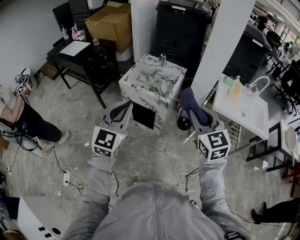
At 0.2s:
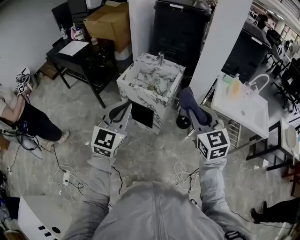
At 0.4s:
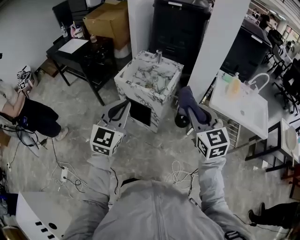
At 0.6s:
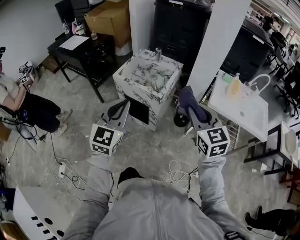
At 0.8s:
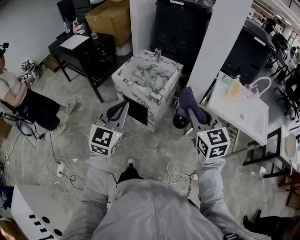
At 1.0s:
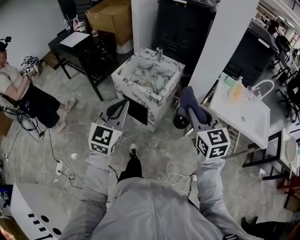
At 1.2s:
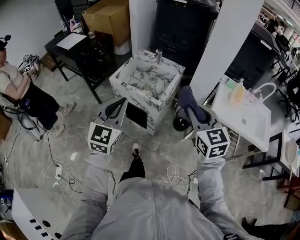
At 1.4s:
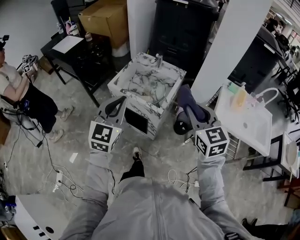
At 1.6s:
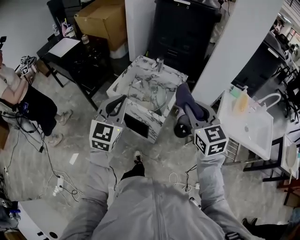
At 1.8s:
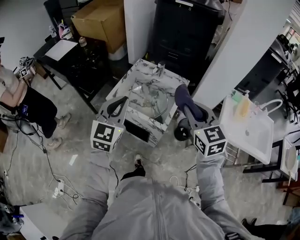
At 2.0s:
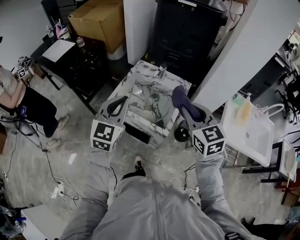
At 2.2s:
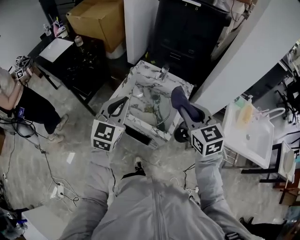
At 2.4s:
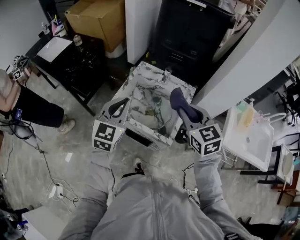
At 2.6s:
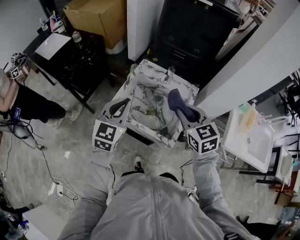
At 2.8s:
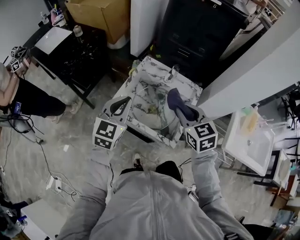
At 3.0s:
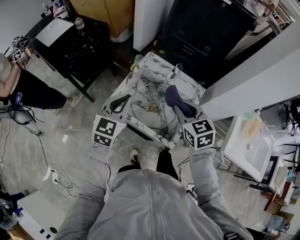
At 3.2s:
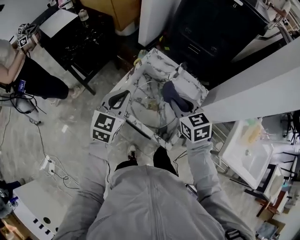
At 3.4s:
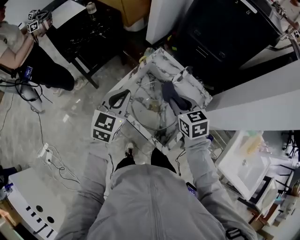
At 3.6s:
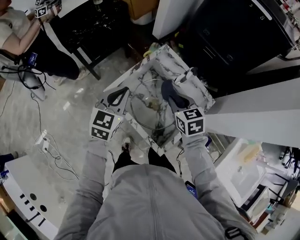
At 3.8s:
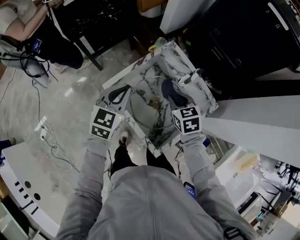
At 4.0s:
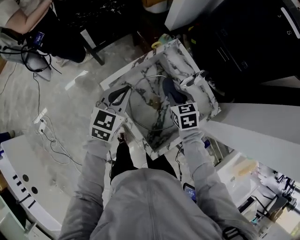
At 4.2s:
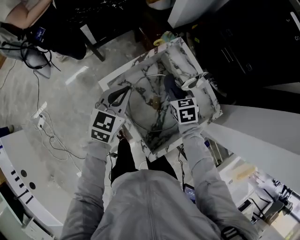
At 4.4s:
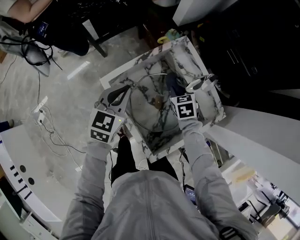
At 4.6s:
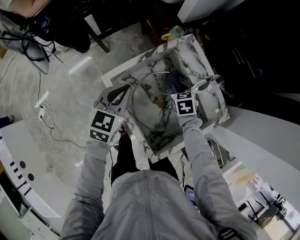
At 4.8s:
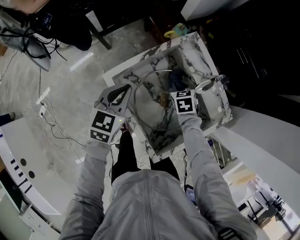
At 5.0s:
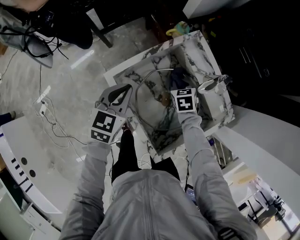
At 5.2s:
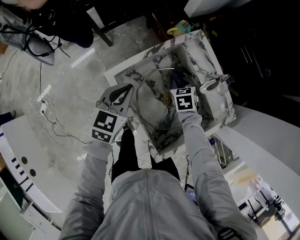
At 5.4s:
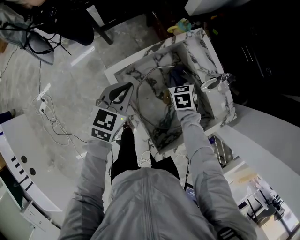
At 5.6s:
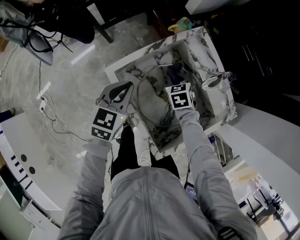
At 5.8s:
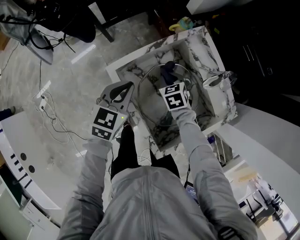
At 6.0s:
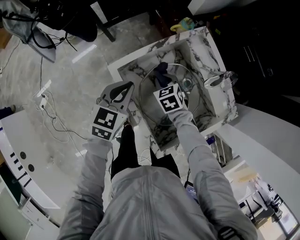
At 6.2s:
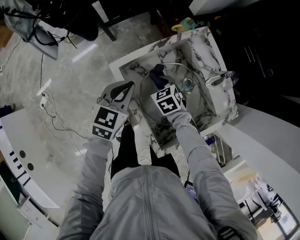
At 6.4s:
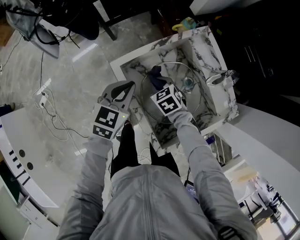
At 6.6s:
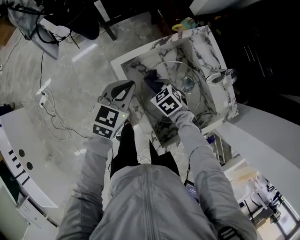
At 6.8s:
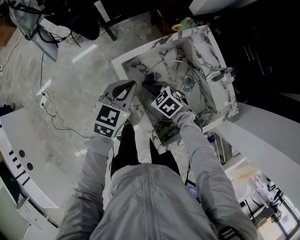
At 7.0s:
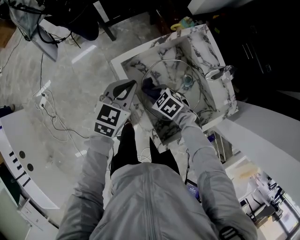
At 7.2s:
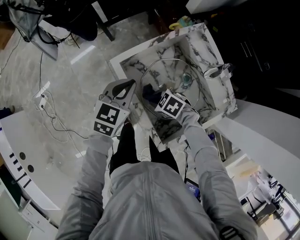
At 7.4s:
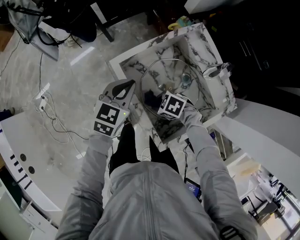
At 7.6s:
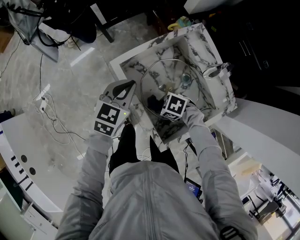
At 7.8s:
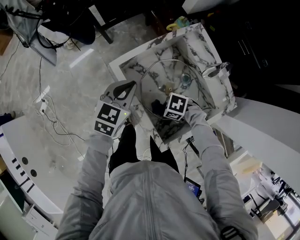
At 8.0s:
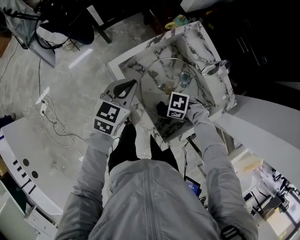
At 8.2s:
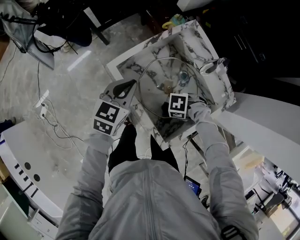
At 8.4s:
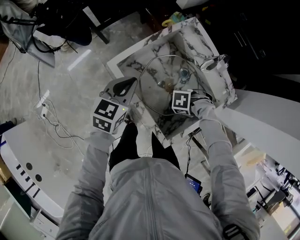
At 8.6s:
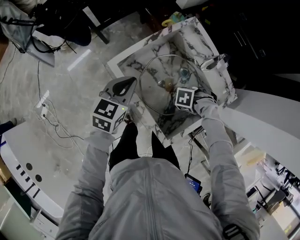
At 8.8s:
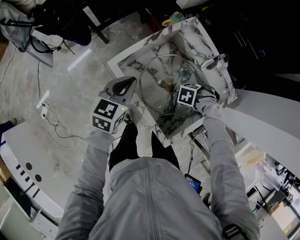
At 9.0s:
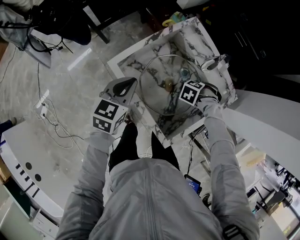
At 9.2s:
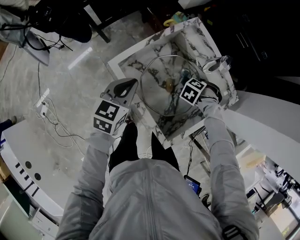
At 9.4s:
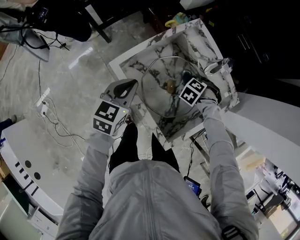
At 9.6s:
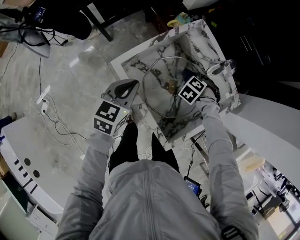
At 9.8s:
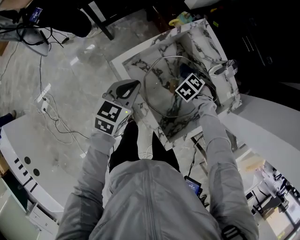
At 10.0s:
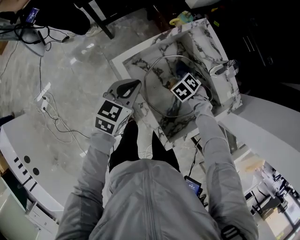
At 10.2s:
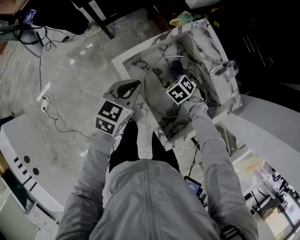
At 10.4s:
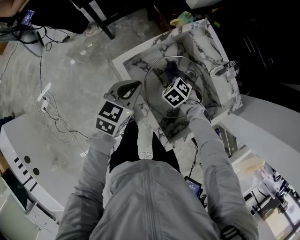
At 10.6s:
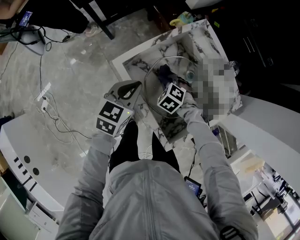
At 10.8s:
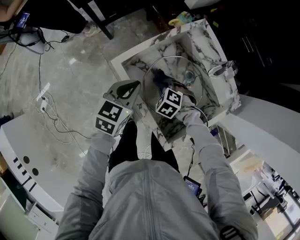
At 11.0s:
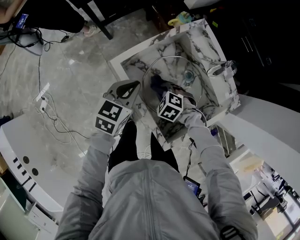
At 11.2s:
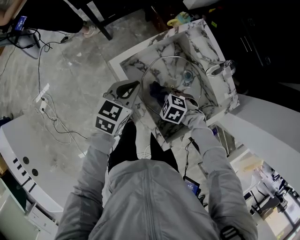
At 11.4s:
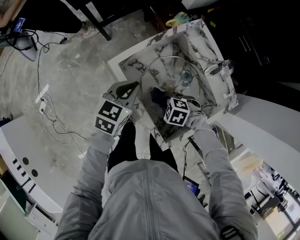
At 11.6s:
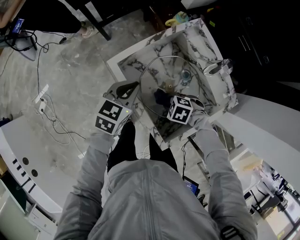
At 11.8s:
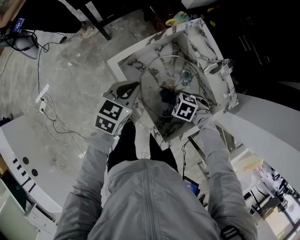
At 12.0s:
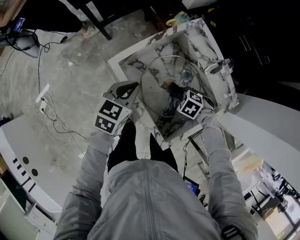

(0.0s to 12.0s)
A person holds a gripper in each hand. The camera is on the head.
0.0s - 1.6s: Both grippers move forward, about 20 cm.
1.6s - 3.0s: The left gripper moves forward and downward, some 25 cm. Meanwhile the right gripper shifts approximately 30 cm forward, downward and to the left.
3.0s - 4.4s: The left gripper travels downward and forward by some 15 cm, and swivels approximately 30 degrees. The right gripper travels downward and forward by approximately 30 cm, and changes its angle by roughly 30 degrees.
4.4s - 6.0s: The right gripper goes some 15 cm to the left. Meanwhile the left gripper ends up roughly 5 cm from where it was.
6.0s - 7.6s: The right gripper shifts by roughly 20 cm, and swivels roughly 50 degrees.
7.6s - 9.0s: The right gripper ends up approximately 20 cm from where it was, and changes its angle by some 40 degrees.
9.0s - 10.4s: The right gripper moves some 15 cm, and changes its angle by approximately 30 degrees.
10.4s - 12.0s: The right gripper ends up roughly 10 cm from where it was, and rotates some 20 degrees.

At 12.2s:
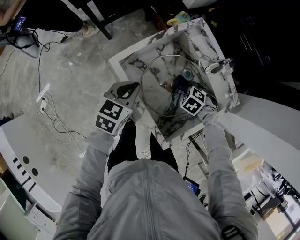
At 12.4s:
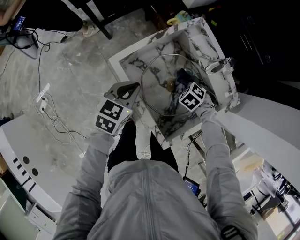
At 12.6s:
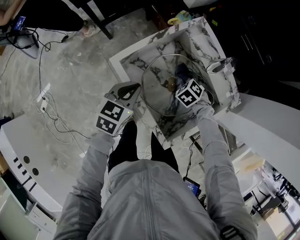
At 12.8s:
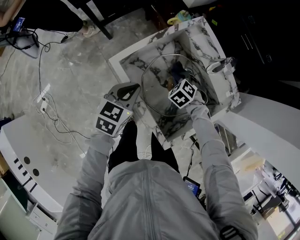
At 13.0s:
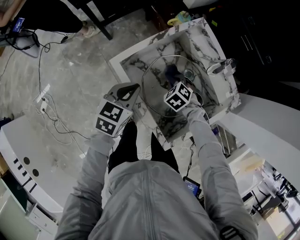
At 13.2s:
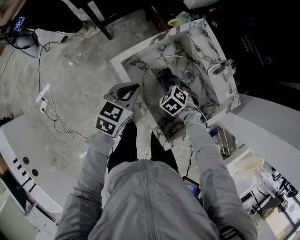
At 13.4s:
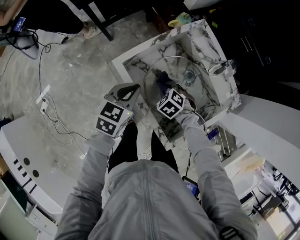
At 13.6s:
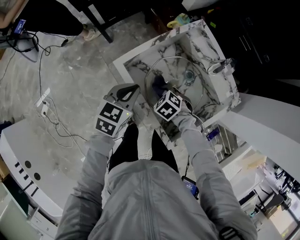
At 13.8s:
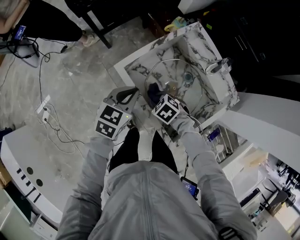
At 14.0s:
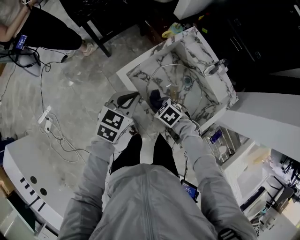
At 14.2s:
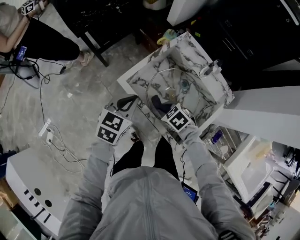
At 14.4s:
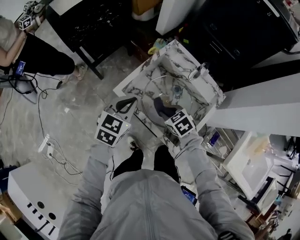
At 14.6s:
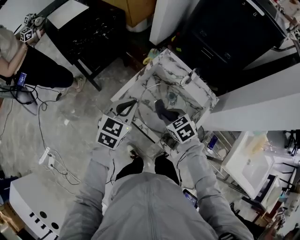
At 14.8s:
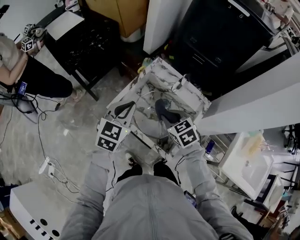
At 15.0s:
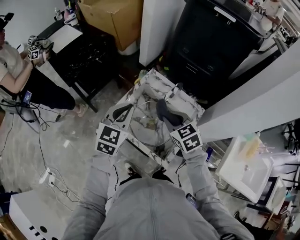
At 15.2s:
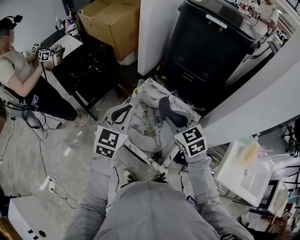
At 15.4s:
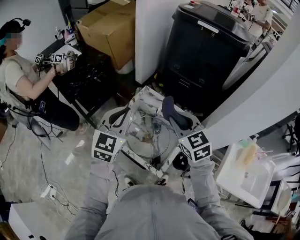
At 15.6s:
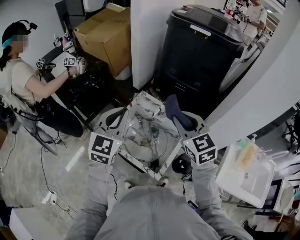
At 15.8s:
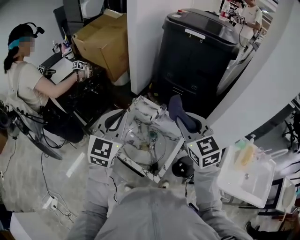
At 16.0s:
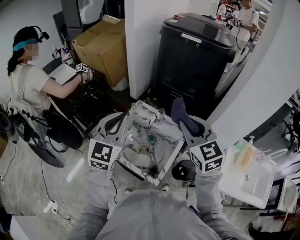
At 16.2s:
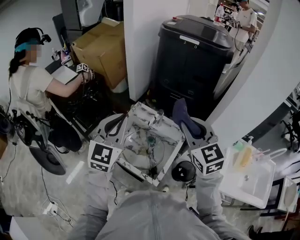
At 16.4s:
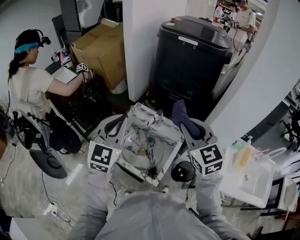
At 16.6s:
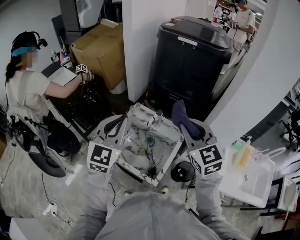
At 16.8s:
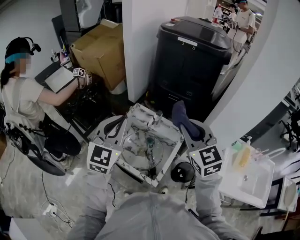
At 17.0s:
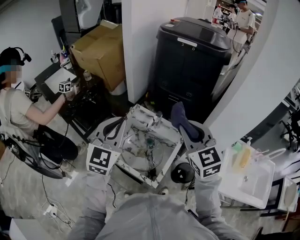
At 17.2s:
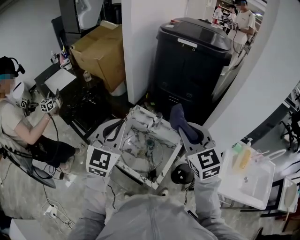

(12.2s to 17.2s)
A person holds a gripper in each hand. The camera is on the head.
12.2s - 13.8s: The right gripper moves roughly 20 cm, and rotates about 20 degrees.
13.8s - 15.6s: The grippers both shift upward by roughly 35 cm. The right gripper angles its fingers upward, by about 50 degrees. The left gripper angles its fingers upward, by roughly 30 degrees.
15.6s - 17.2s: The right gripper moves upward, some 5 cm. Meanwhile the left gripper changes place by roughly 5 cm.

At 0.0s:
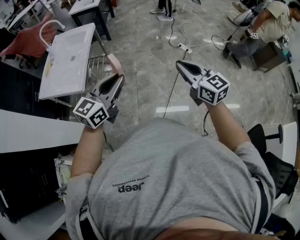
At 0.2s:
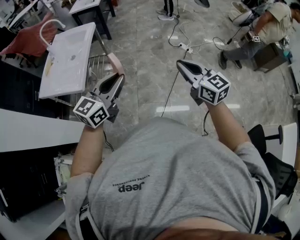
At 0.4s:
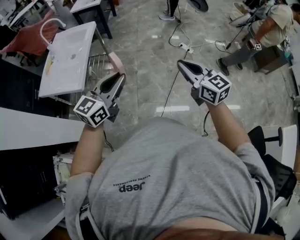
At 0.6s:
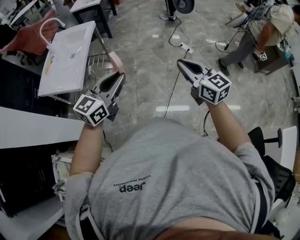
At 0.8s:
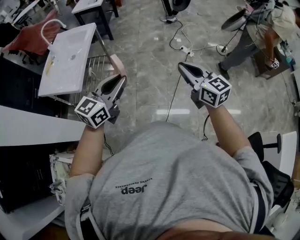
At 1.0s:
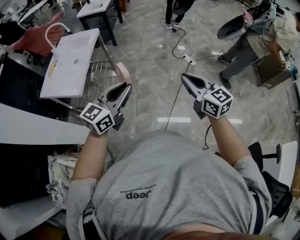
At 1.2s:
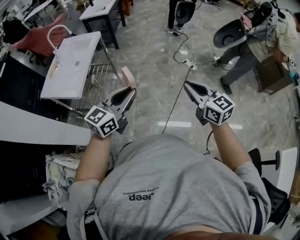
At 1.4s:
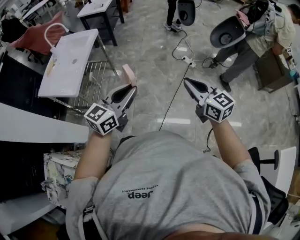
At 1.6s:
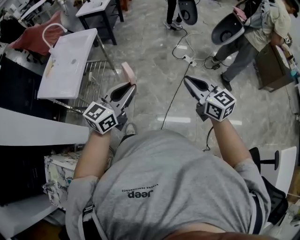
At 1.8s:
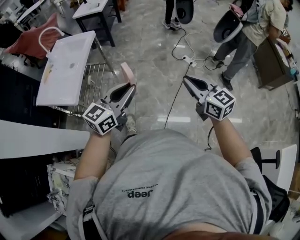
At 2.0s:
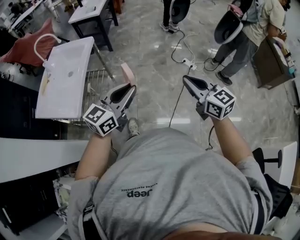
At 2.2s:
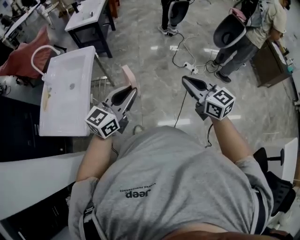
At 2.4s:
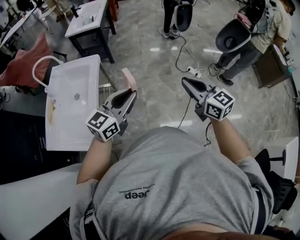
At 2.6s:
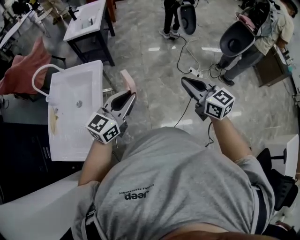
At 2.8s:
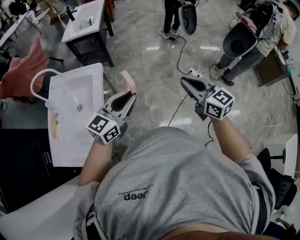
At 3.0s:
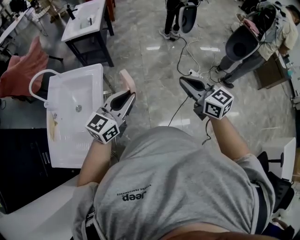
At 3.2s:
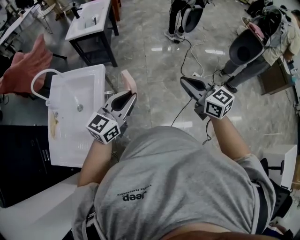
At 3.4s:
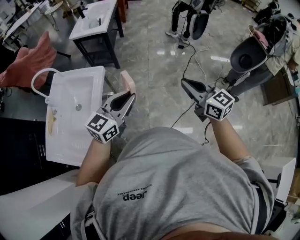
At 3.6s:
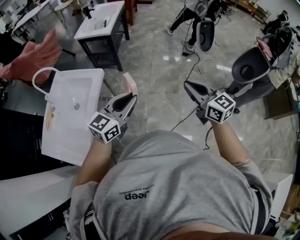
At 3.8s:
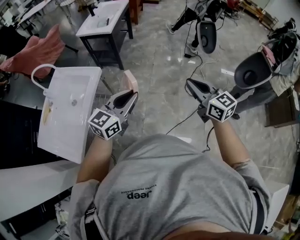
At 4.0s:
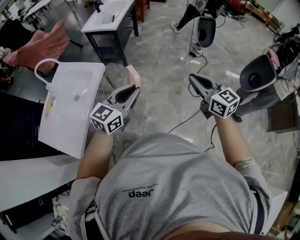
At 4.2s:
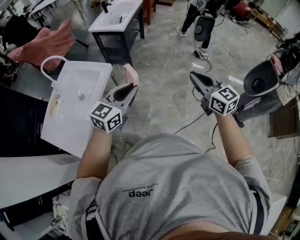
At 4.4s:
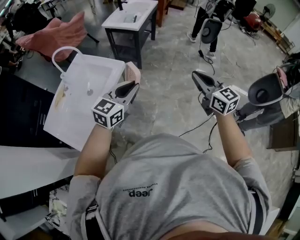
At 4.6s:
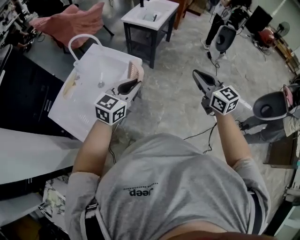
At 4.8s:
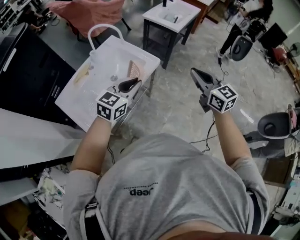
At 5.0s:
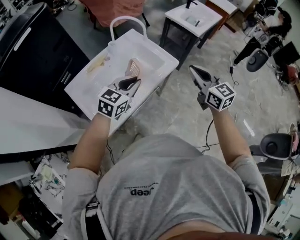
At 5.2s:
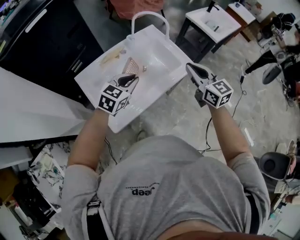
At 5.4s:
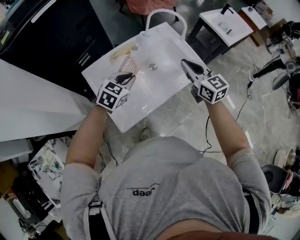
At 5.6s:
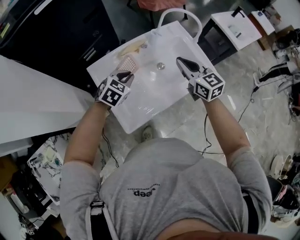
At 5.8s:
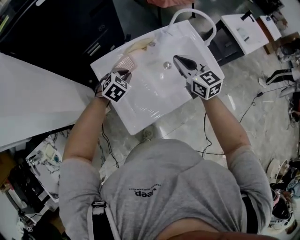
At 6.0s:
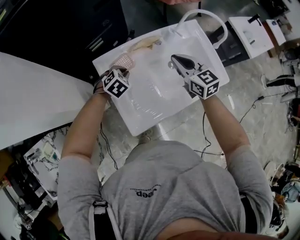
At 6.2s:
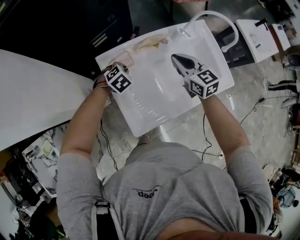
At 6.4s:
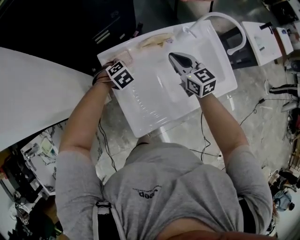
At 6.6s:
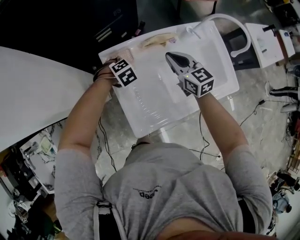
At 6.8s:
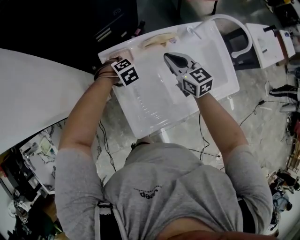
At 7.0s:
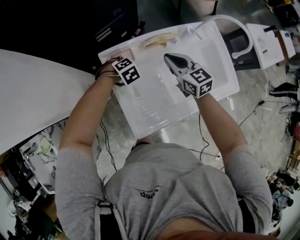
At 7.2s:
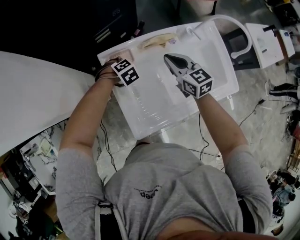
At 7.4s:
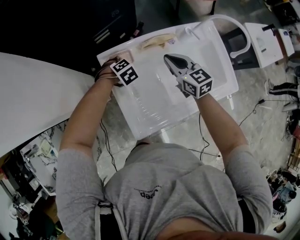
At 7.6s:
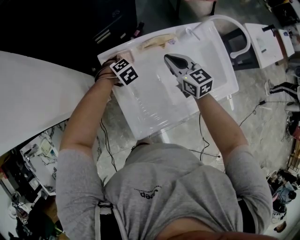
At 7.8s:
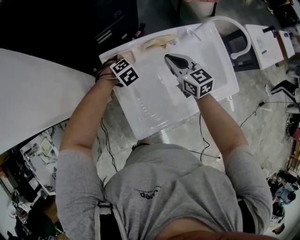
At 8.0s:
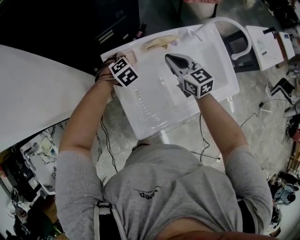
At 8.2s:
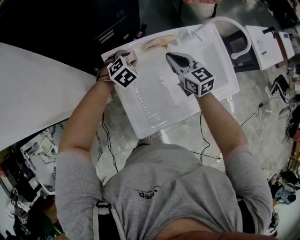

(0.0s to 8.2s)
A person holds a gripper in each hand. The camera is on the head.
0.0s - 1.6s: The two grippers go approximately 10 cm to the right.
1.6s - 3.2s: The two grippers travel together, forward and to the left, roughly 50 cm.
3.2s - 5.0s: The left gripper shifts by approximately 25 cm, and changes its angle by about 50 degrees, while the right gripper shifts by approximately 30 cm, and turns by some 40 degrees.
5.0s - 6.6s: The left gripper changes place by about 50 cm, and tilts its fingers approximately 50 degrees downward. The right gripper changes place by about 50 cm, and changes its angle by roughly 30 degrees.
6.6s - 8.2s: The left gripper is displaced upward by some 5 cm, rotates roughly 20 degrees, and opens.
